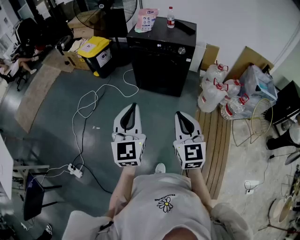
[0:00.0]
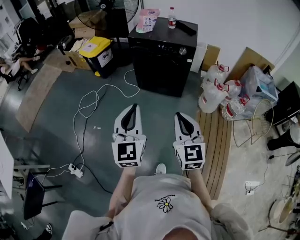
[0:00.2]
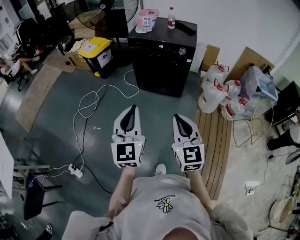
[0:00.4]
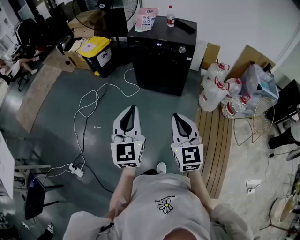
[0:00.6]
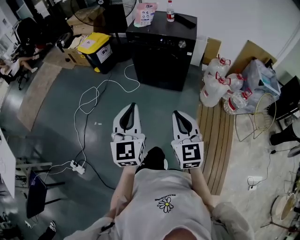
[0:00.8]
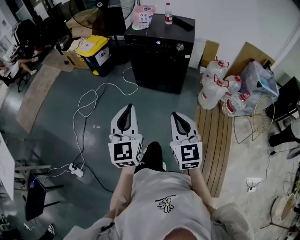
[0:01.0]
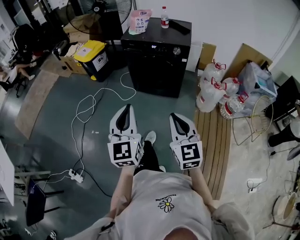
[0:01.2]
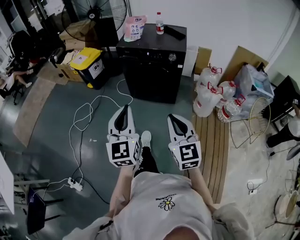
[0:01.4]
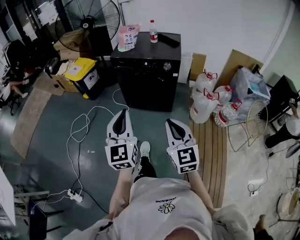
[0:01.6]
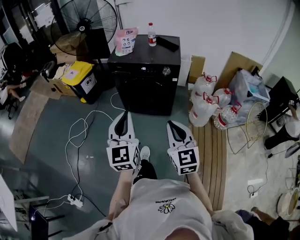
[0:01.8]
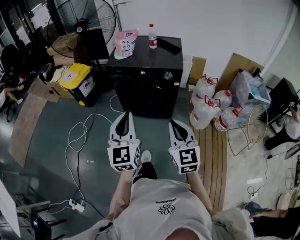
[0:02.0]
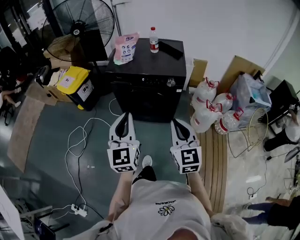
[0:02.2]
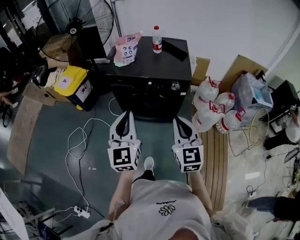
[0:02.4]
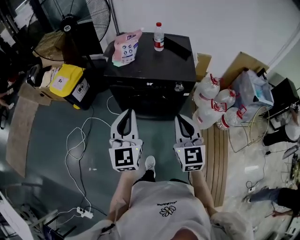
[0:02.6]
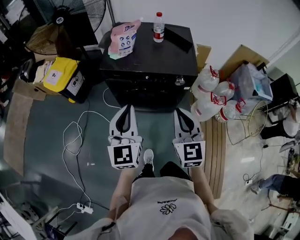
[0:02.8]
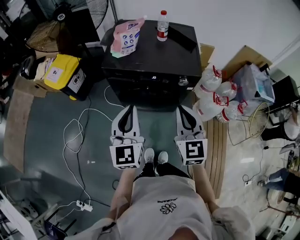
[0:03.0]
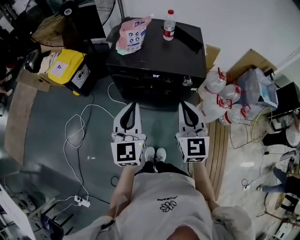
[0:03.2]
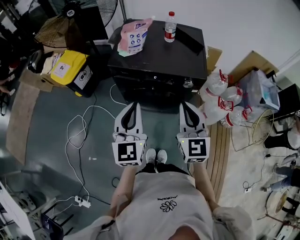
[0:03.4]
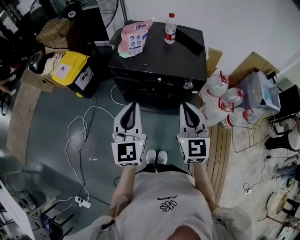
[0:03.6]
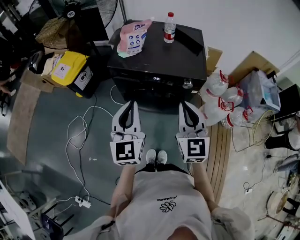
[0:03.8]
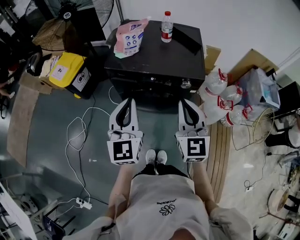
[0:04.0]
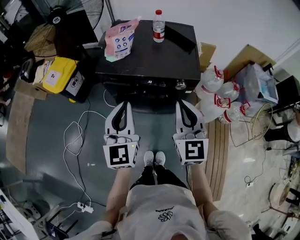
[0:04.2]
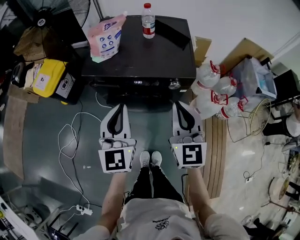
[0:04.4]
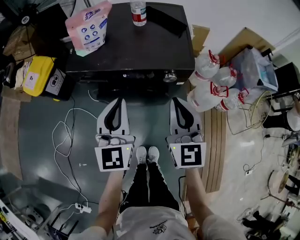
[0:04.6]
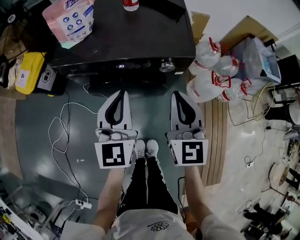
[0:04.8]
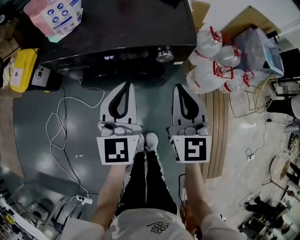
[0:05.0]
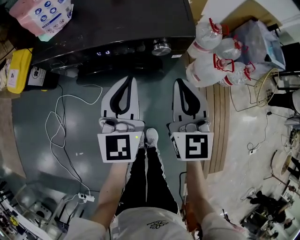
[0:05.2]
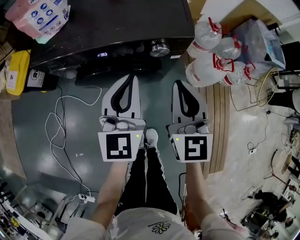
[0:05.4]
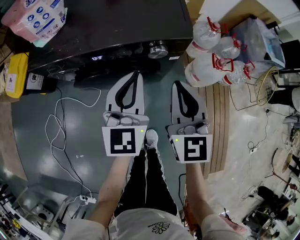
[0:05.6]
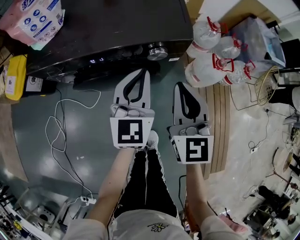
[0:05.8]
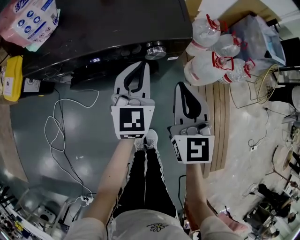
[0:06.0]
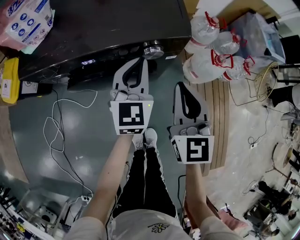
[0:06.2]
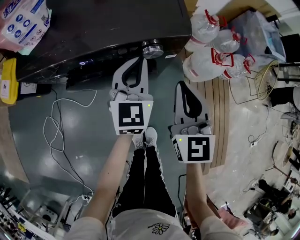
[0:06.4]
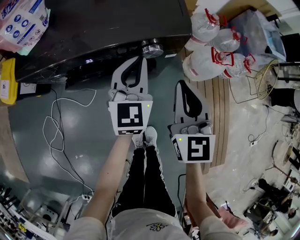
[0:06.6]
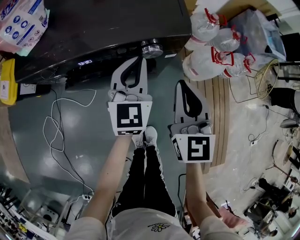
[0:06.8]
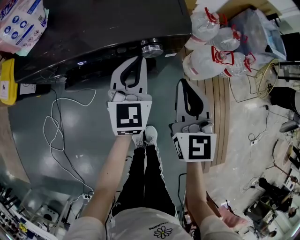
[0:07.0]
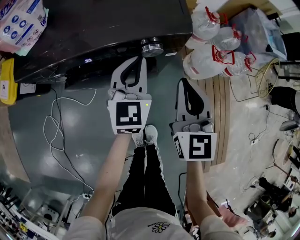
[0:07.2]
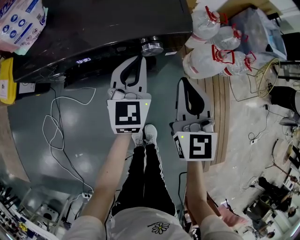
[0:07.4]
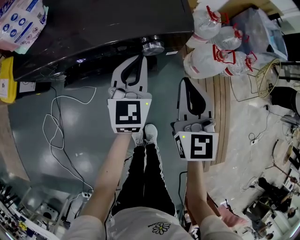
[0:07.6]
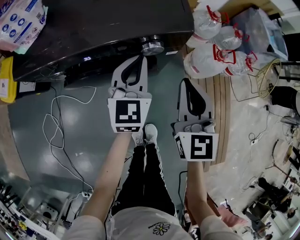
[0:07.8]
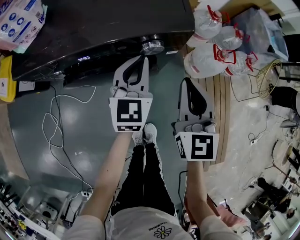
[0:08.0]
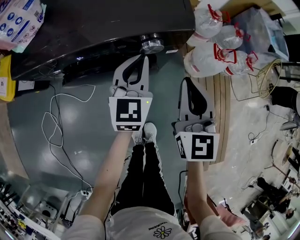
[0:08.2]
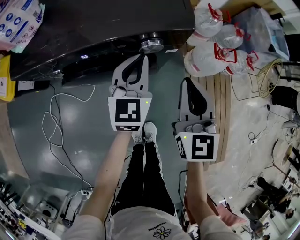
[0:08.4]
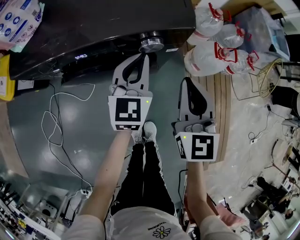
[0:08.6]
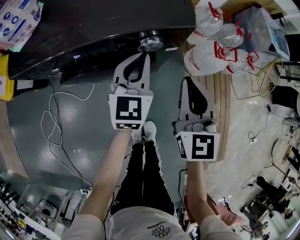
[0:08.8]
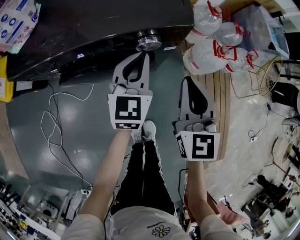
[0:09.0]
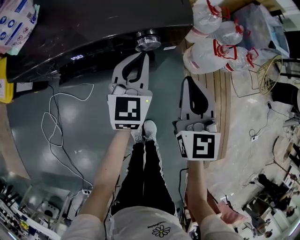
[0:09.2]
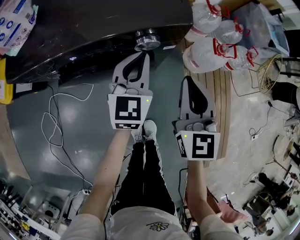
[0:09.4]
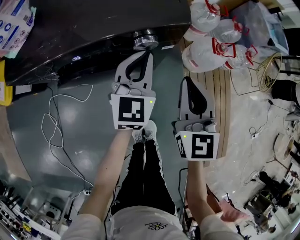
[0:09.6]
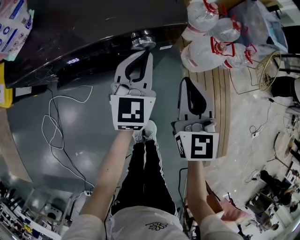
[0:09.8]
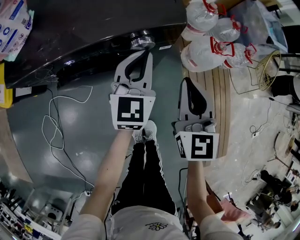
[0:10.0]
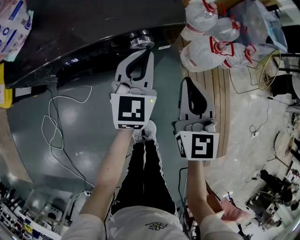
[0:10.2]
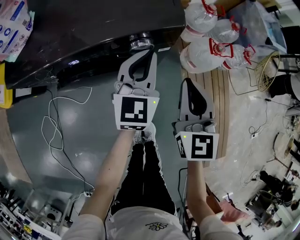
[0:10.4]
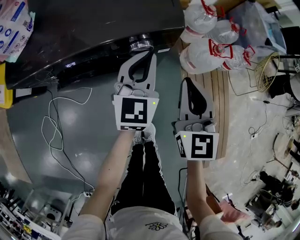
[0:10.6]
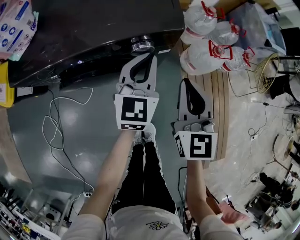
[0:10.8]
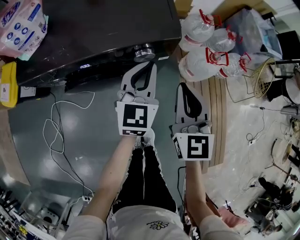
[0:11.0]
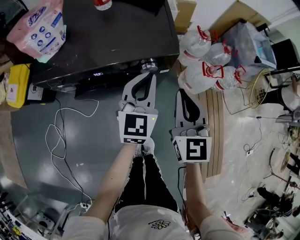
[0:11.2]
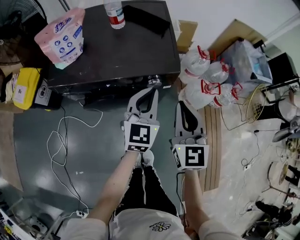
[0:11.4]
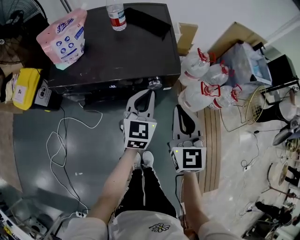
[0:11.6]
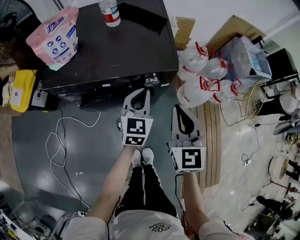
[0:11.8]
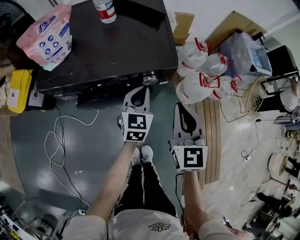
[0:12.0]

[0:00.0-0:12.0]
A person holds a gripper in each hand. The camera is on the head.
0:00.0 to 0:01.6: The two grippers go approximately 10 cm forward.
0:01.6 to 0:03.0: Both grippers travel together forward, approximately 35 cm.
0:03.0 to 0:04.4: The right gripper shifts approximately 10 cm forward and to the right; the left gripper shifts roughly 5 cm forward.
0:04.4 to 0:06.0: The left gripper moves downward, to the right and forward, roughly 30 cm. Meanwhile the right gripper is displaced downward and to the right by roughly 20 cm.
0:06.0 to 0:07.6: The grippers stay close to where they were, moving slightly.
0:07.6 to 0:10.4: The grippers stay close to where they were, moving slightly.
0:10.4 to 0:12.0: The left gripper reaches about 10 cm upward, then returns. The right gripper shifts approximately 10 cm upward.

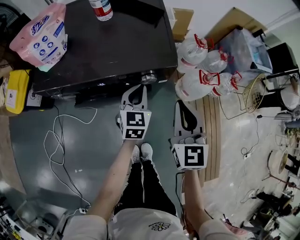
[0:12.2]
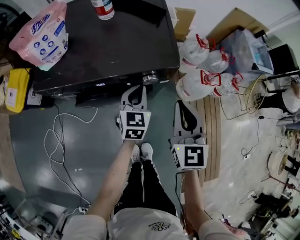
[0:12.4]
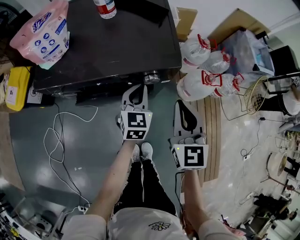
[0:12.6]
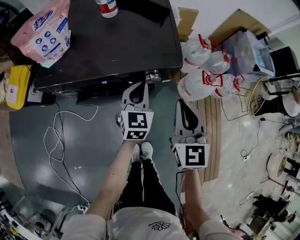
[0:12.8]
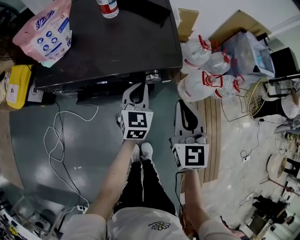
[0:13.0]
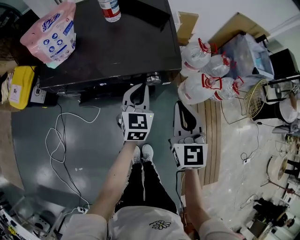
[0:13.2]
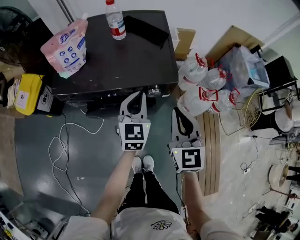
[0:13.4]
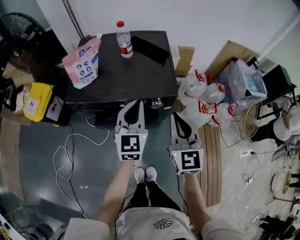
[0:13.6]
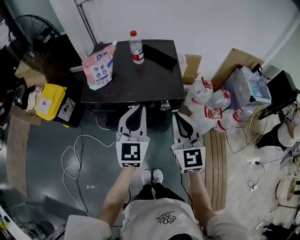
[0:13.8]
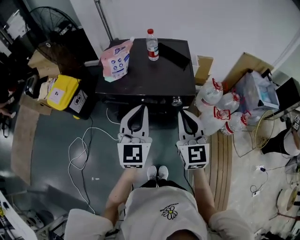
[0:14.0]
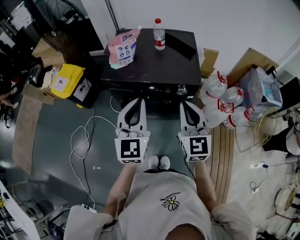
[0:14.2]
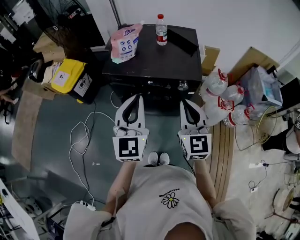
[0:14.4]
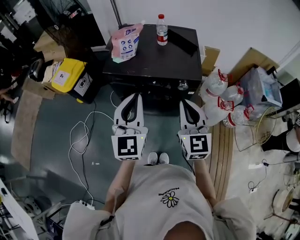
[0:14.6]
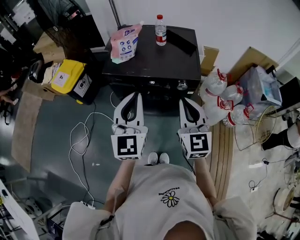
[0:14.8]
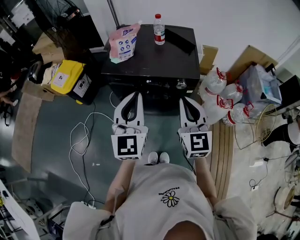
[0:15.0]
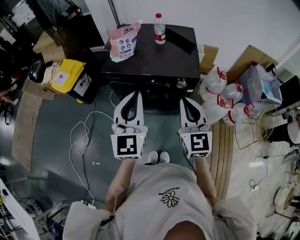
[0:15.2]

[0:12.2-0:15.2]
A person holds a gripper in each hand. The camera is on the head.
0:12.2 to 0:13.8: The left gripper is displaced upward by some 25 cm, and swivels approximately 30 degrees, while the right gripper moves upward and to the left, some 15 cm.
0:13.8 to 0:15.2: The right gripper goes about 5 cm backward, while the left gripper shifts roughly 15 cm backward, to the left and upward.

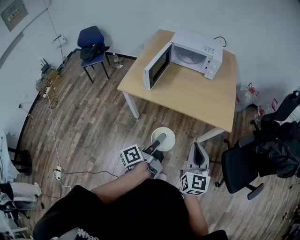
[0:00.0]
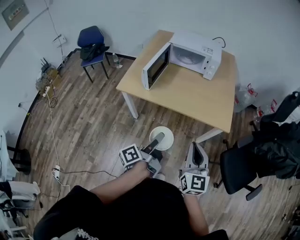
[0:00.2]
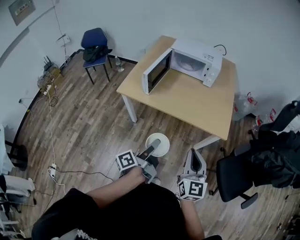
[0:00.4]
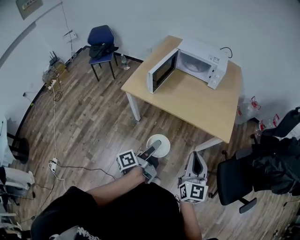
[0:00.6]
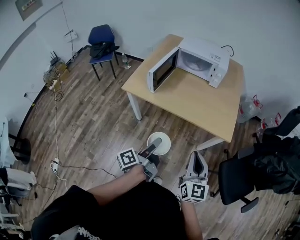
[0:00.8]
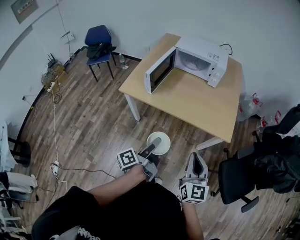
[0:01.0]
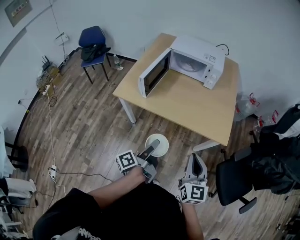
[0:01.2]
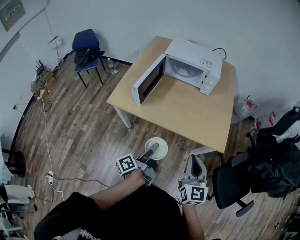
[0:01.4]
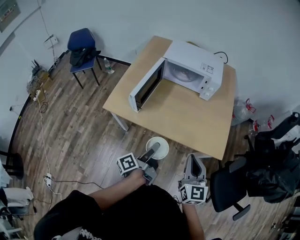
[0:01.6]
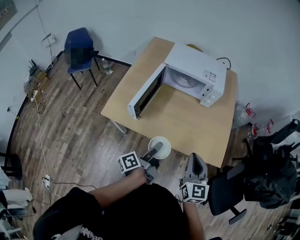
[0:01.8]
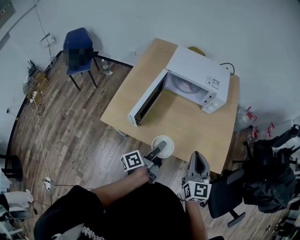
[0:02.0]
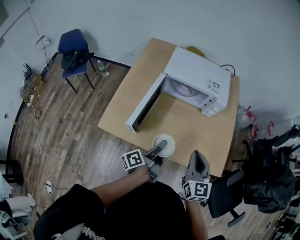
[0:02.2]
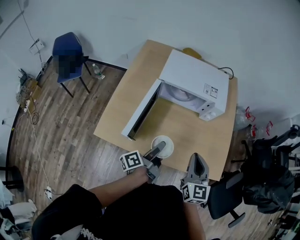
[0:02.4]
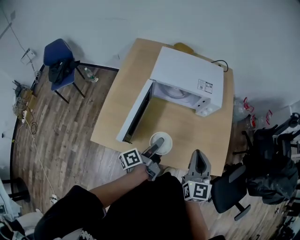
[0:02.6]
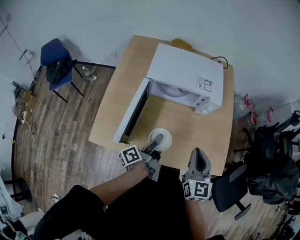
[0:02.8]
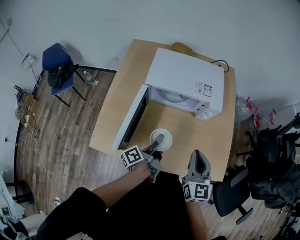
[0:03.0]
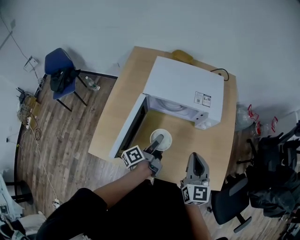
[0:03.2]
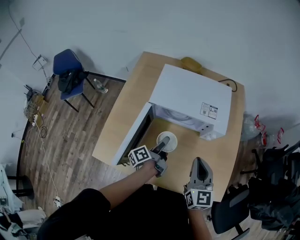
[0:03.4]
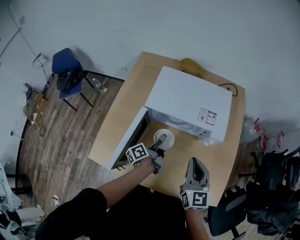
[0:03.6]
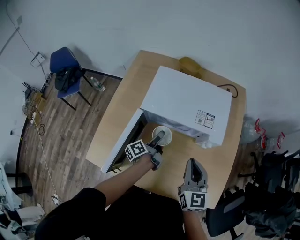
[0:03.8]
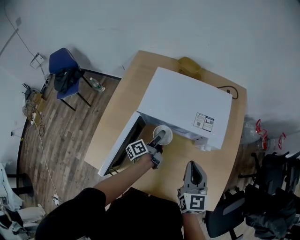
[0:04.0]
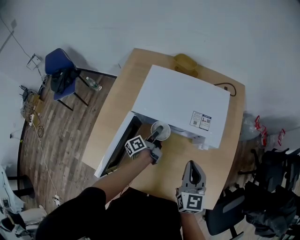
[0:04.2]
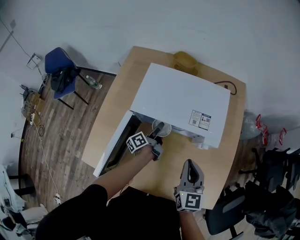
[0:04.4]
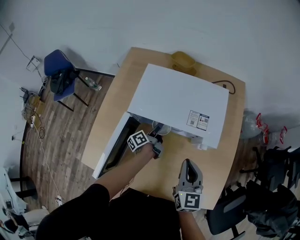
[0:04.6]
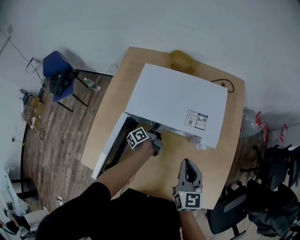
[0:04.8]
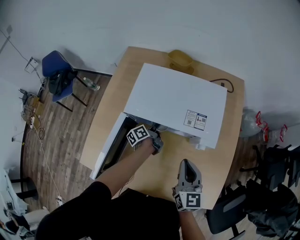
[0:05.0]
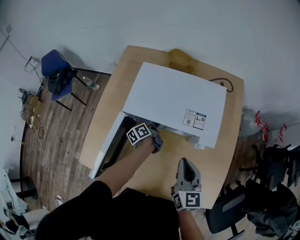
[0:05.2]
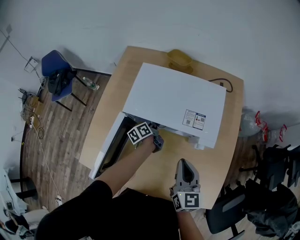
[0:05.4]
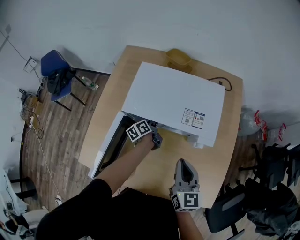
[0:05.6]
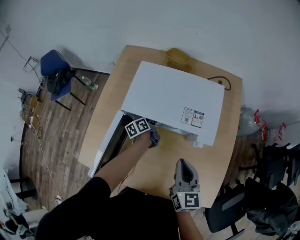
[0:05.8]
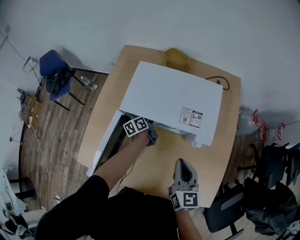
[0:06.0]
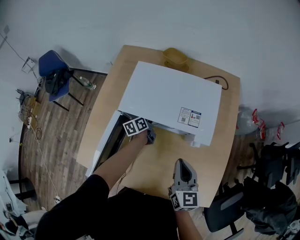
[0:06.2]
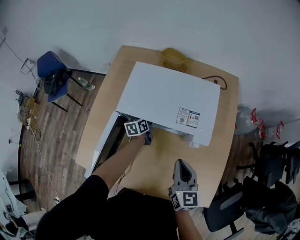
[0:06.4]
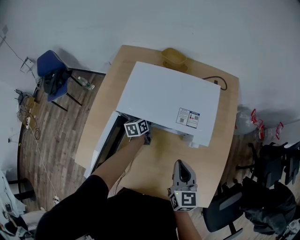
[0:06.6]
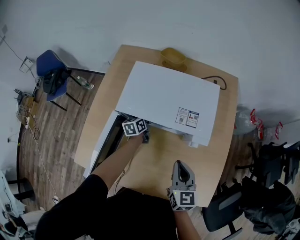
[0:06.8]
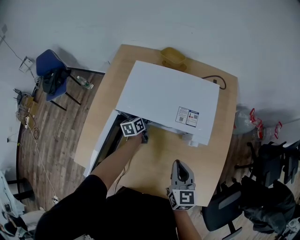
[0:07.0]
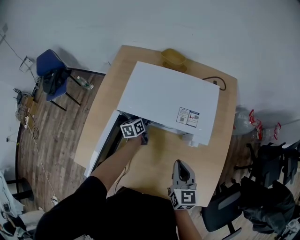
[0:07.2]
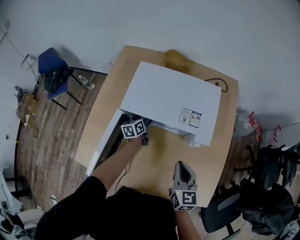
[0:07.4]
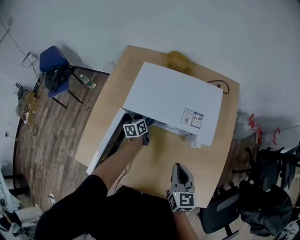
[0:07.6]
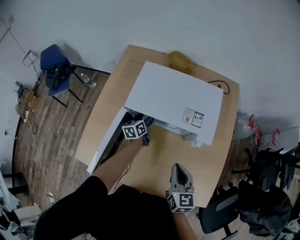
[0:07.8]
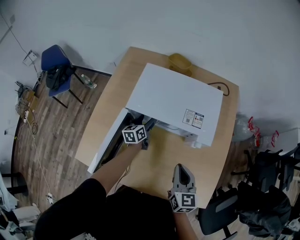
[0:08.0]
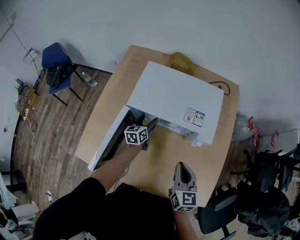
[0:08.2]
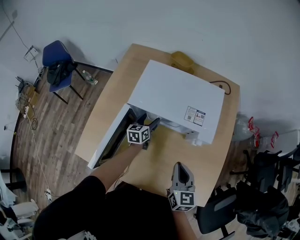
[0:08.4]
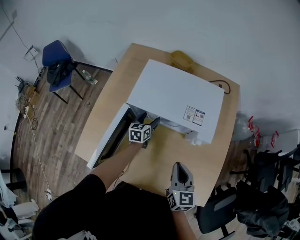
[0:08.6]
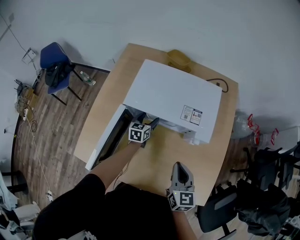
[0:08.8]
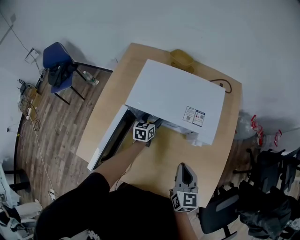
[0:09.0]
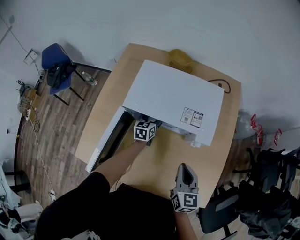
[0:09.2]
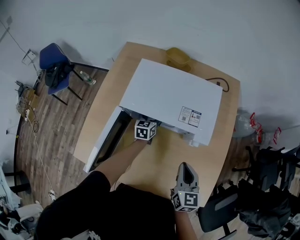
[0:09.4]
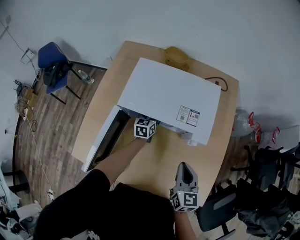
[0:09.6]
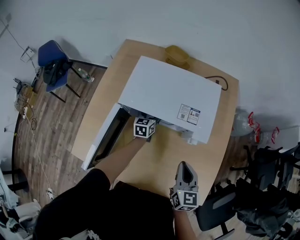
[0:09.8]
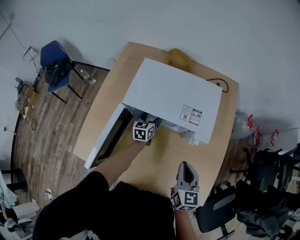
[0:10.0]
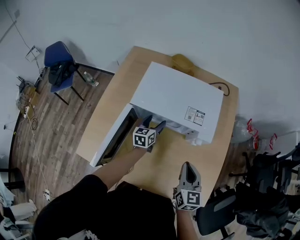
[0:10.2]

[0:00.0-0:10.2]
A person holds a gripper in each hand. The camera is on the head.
0:00.0 to 0:01.4: The grippers both shift forward by some 10 cm.
0:01.4 to 0:03.0: Both grippers move forward, approximately 35 cm.
0:03.0 to 0:04.4: The left gripper moves forward and downward, some 25 cm. The right gripper goes roughly 15 cm forward.
0:04.4 to 0:05.8: The left gripper is displaced forward by some 5 cm, and turns by approximately 20 degrees.
0:05.8 to 0:07.2: The left gripper changes its angle by approximately 20 degrees.
0:07.2 to 0:08.8: The left gripper swivels roughly 20 degrees.
0:08.8 to 0:10.2: The left gripper changes place by some 5 cm.
